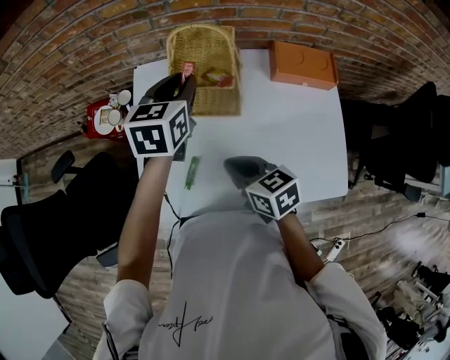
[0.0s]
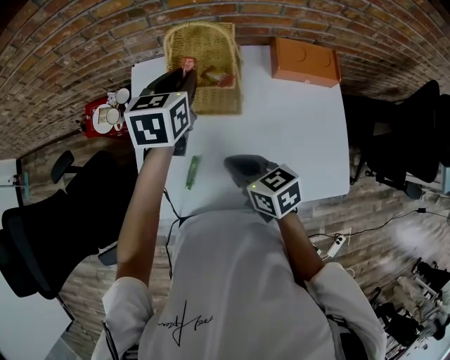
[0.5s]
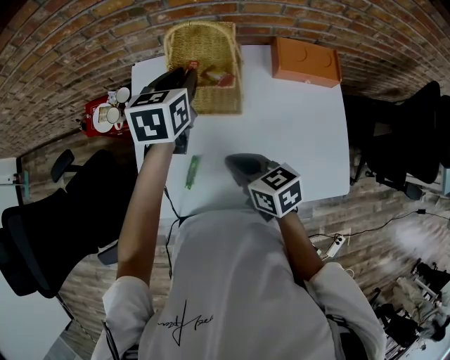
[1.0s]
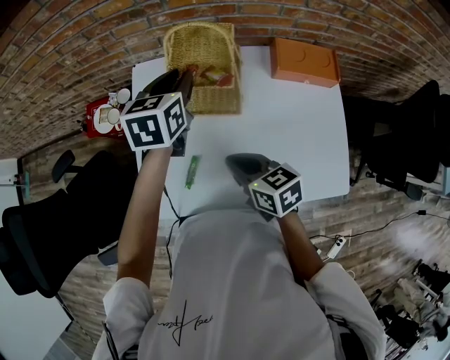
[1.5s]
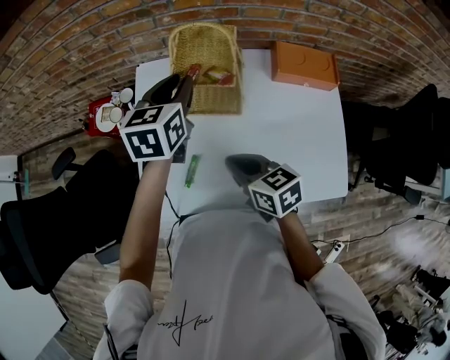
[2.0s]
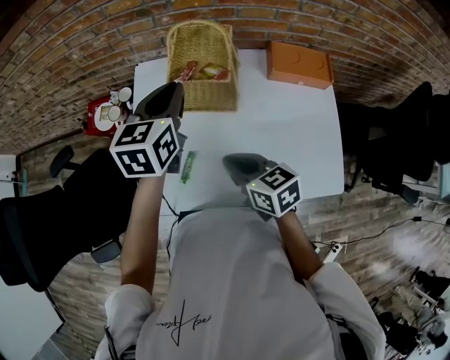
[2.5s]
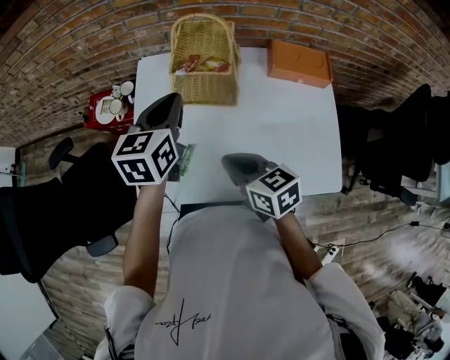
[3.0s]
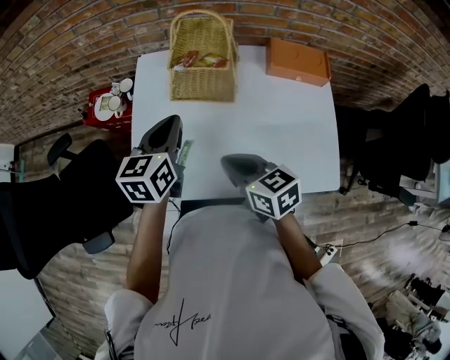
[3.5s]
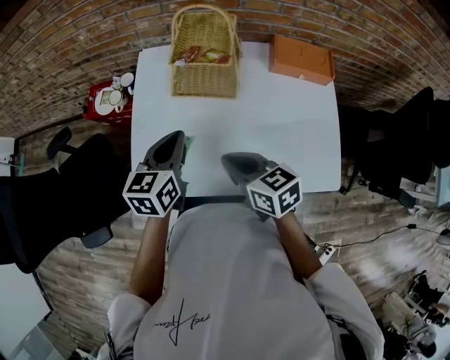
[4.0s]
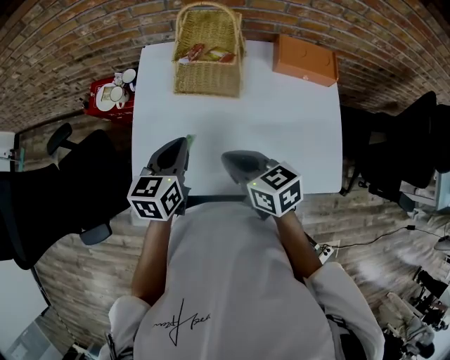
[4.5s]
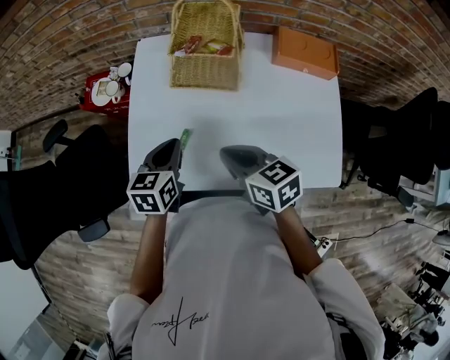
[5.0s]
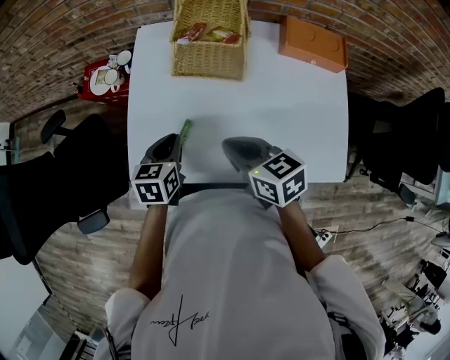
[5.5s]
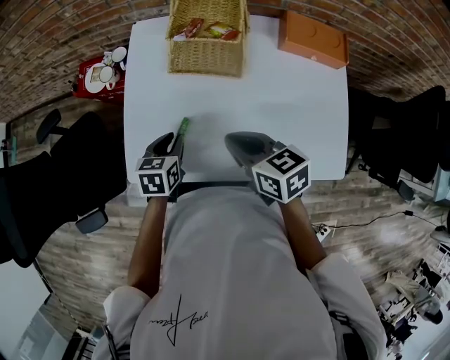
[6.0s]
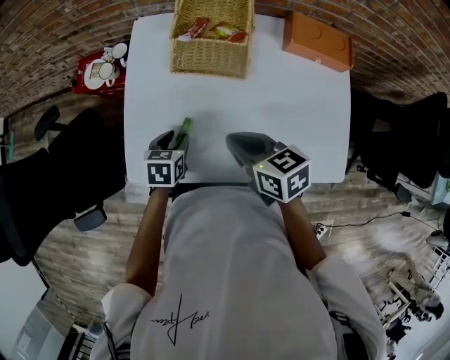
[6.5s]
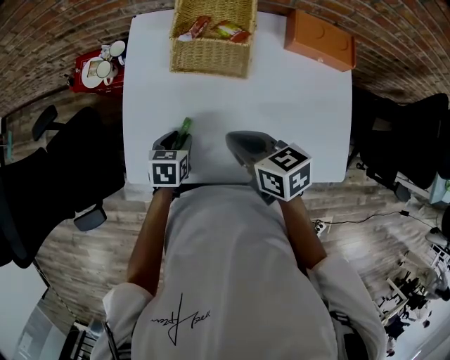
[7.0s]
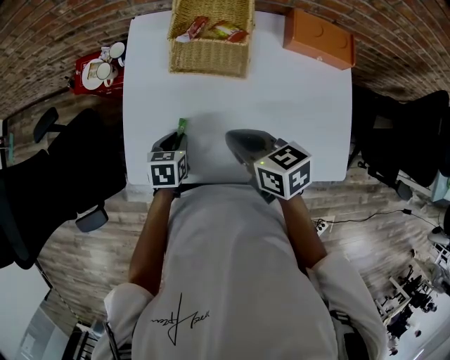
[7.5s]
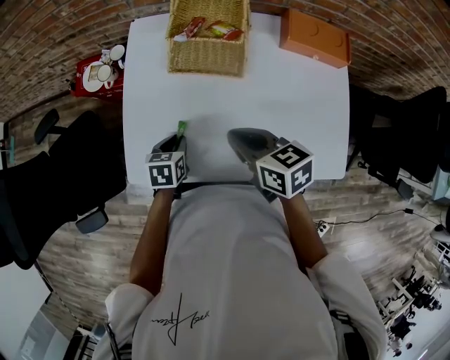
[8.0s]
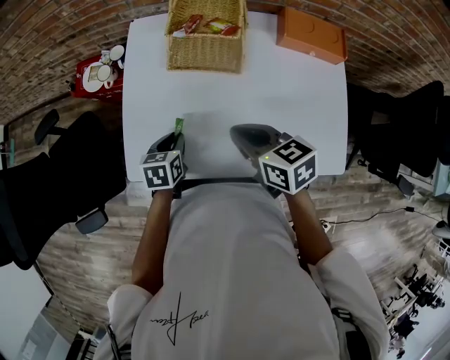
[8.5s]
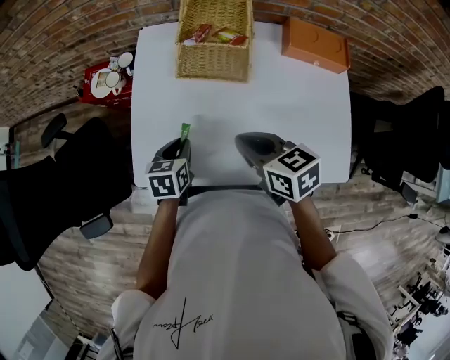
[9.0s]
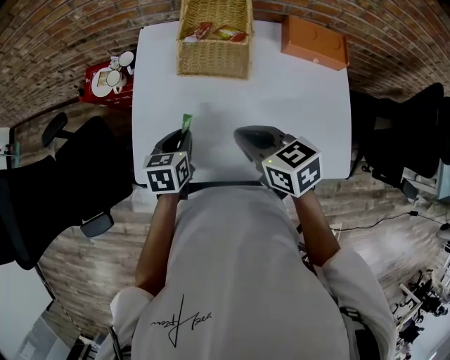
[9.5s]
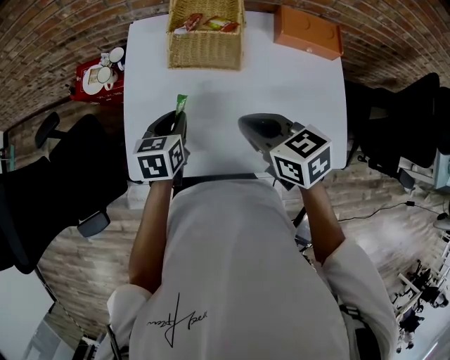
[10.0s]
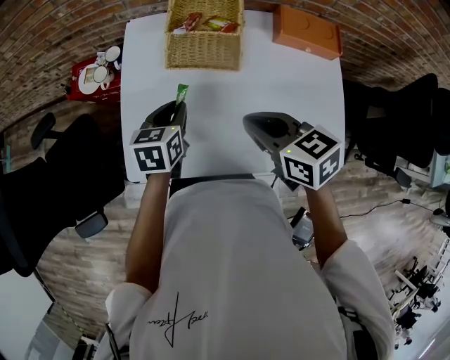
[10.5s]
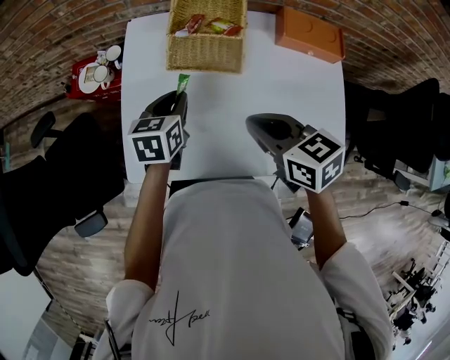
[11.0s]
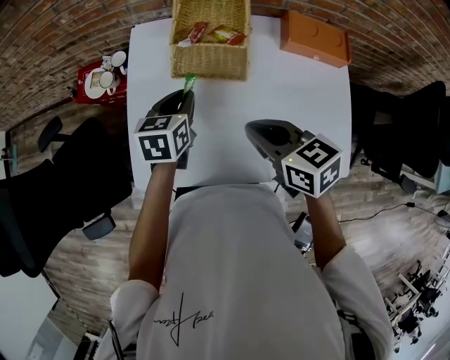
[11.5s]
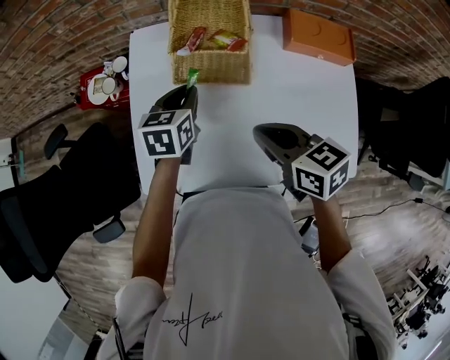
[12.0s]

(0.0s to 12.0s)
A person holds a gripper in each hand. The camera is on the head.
0.0s - 2.0s: The grippers stay close to where they were, moving slightly.
2.0s - 4.0s: The right gripper travels backward by roughly 5 cm. Meanwhile the left gripper is displaced backward by about 15 cm, and closes.
4.0s - 6.0s: The left gripper travels downward by approximately 15 cm, and turns by roughly 20 degrees.
6.0s - 8.0s: The left gripper is displaced downward by about 5 cm.
8.0s - 10.0s: The left gripper goes some 10 cm upward.
10.0s - 12.0s: The left gripper is displaced forward by roughly 10 cm.

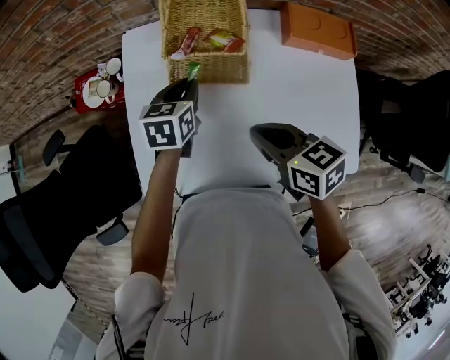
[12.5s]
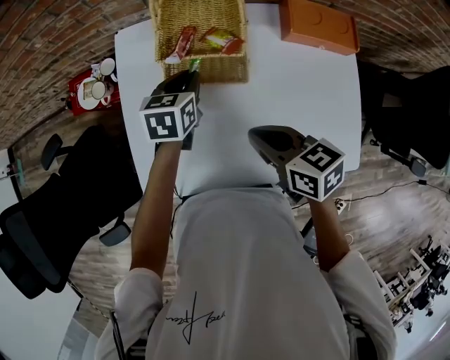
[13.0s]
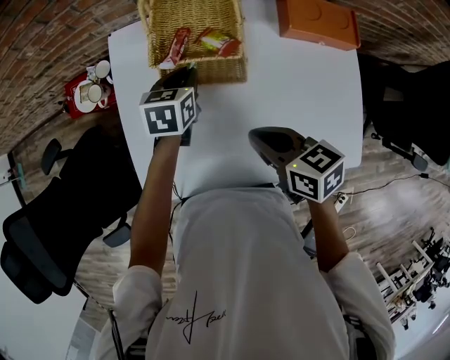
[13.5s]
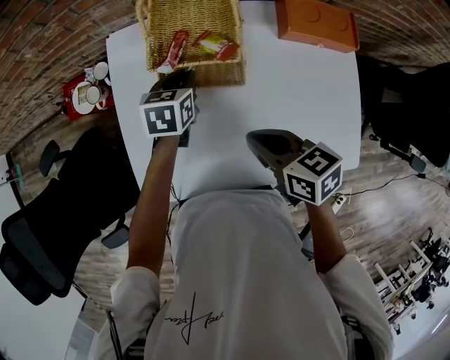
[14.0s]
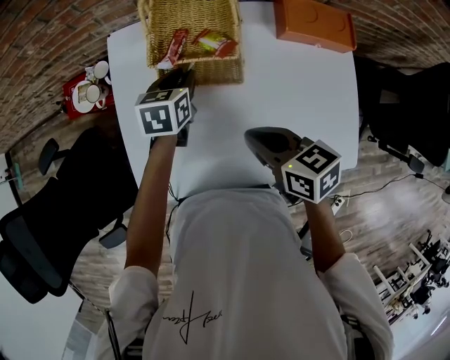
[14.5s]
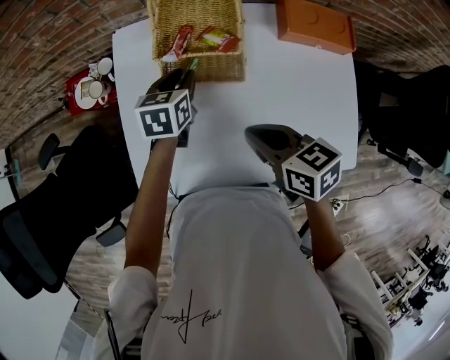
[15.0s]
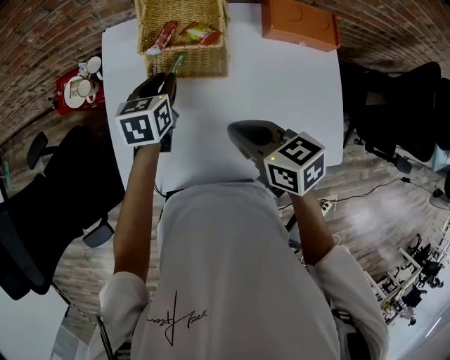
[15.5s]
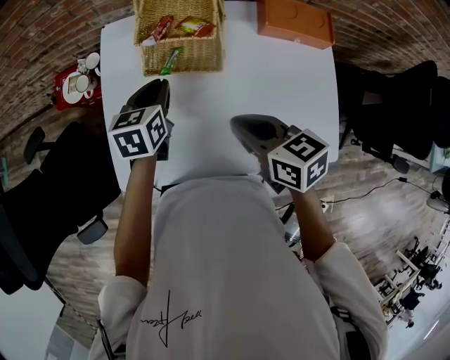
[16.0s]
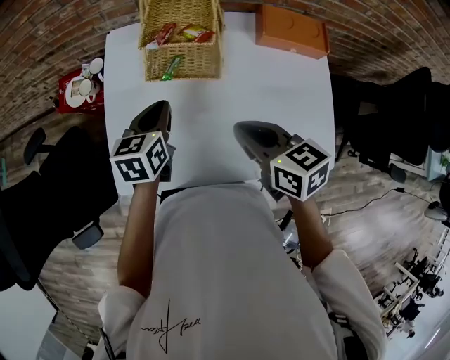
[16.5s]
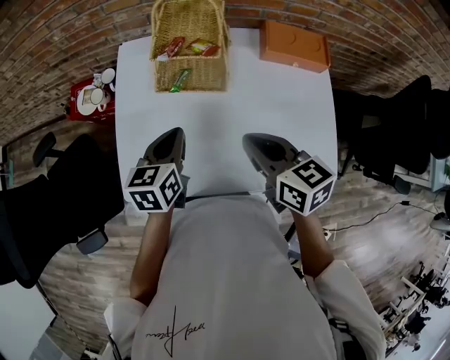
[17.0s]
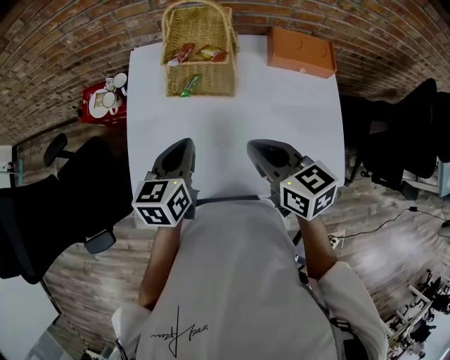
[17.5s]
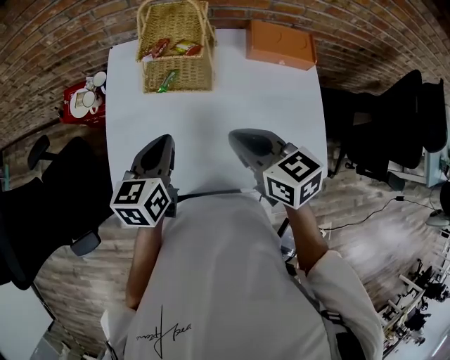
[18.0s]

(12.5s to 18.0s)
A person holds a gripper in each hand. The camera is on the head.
12.5s - 14.5s: The grippers stay close to where they were, moving slightly.
14.5s - 16.0s: The left gripper goes approximately 5 cm backward.
16.0s - 18.0s: The left gripper moves backward and upward, roughly 15 cm.

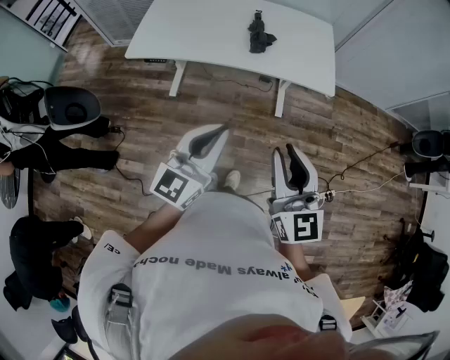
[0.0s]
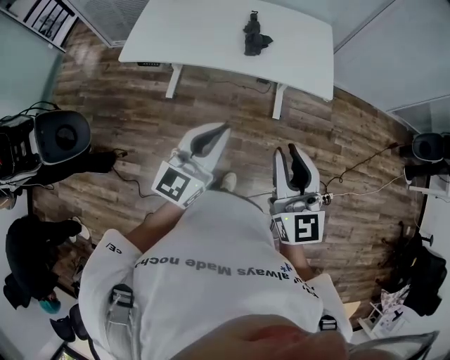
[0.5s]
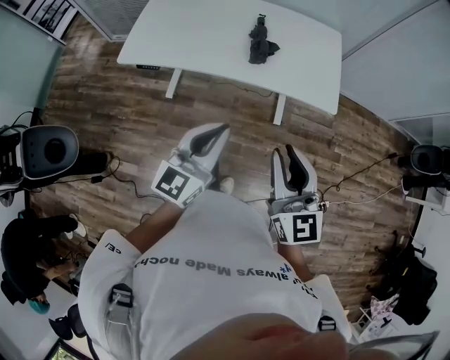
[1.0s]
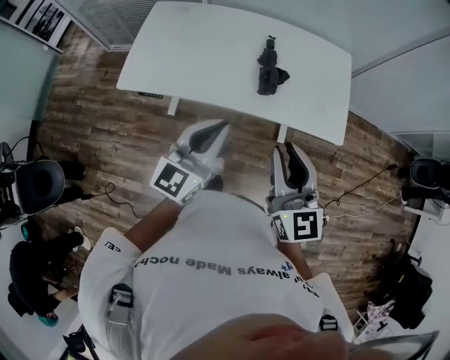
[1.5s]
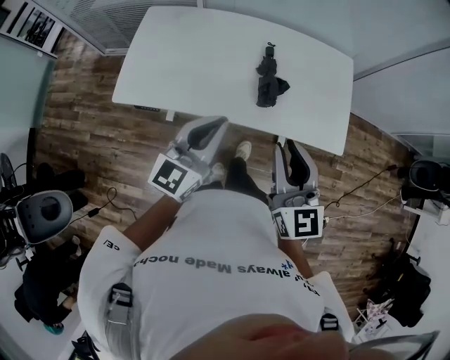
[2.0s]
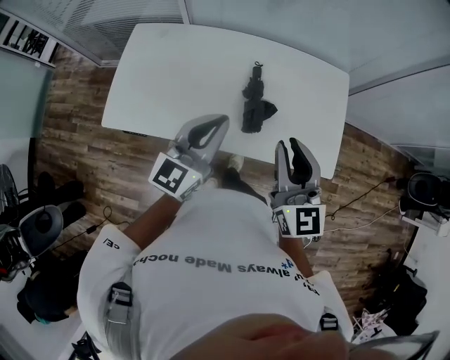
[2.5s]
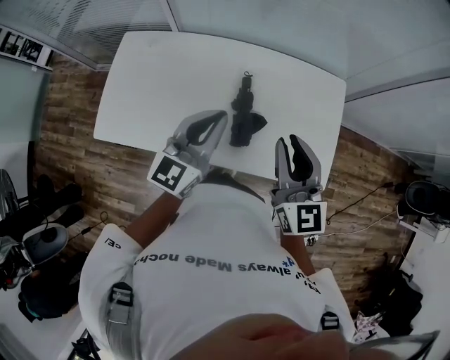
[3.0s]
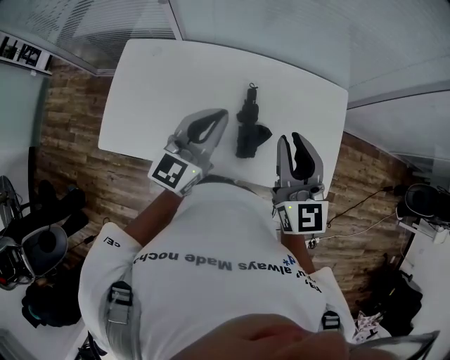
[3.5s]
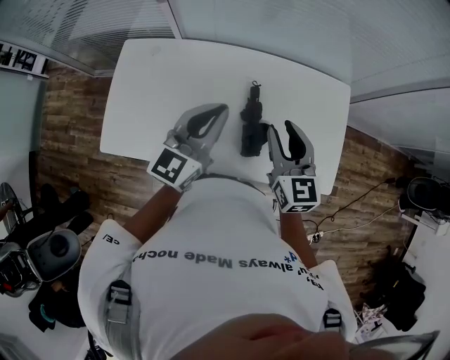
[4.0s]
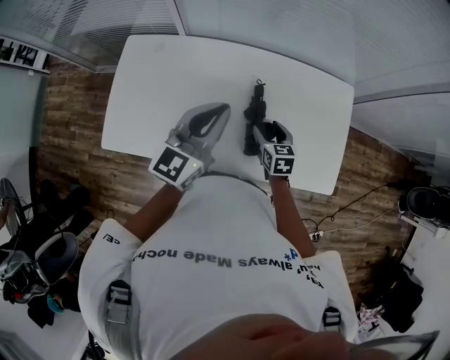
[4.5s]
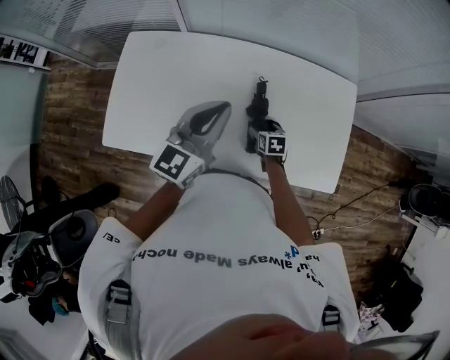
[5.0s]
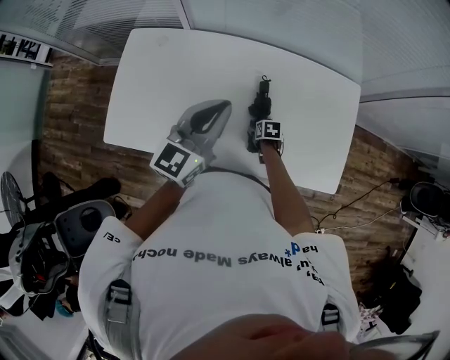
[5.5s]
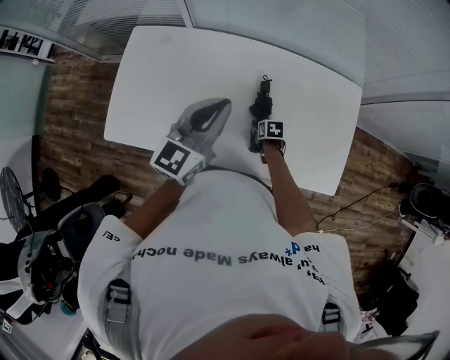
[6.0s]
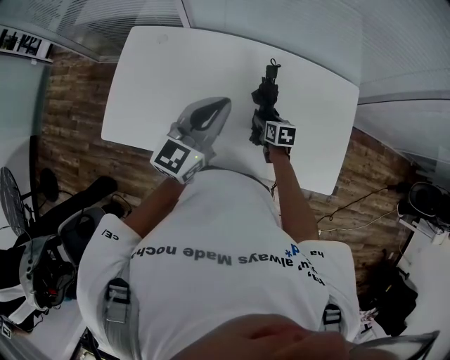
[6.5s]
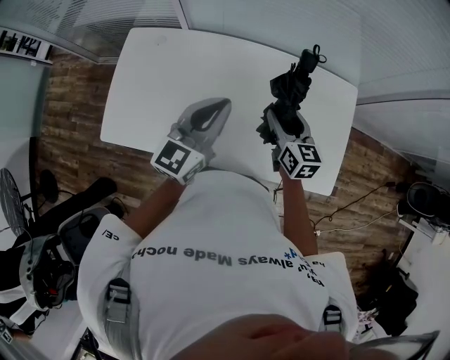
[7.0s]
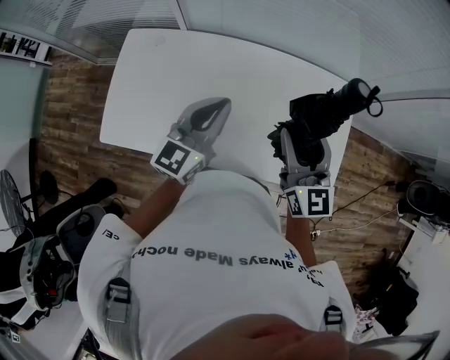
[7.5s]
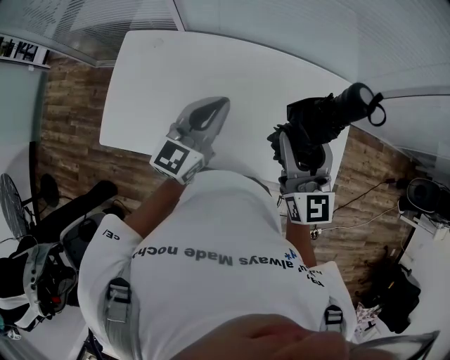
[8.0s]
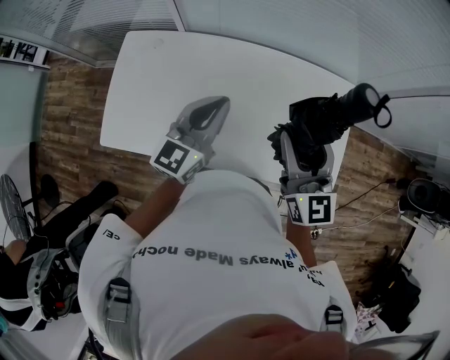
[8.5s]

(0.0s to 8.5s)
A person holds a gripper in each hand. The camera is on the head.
0.0s - 2.0s: Both grippers are carried forward, some 50 cm.
2.0s - 4.0s: The two grippers go about 35 cm forward.
4.0s - 6.5s: The right gripper is displaced downward by some 30 cm, tips its fingers downward by roughly 30 degrees, and opens, then closes once more.
6.5s - 8.5s: The right gripper shifts approximately 35 cm upward, and angles its fingers upward, by some 50 degrees.

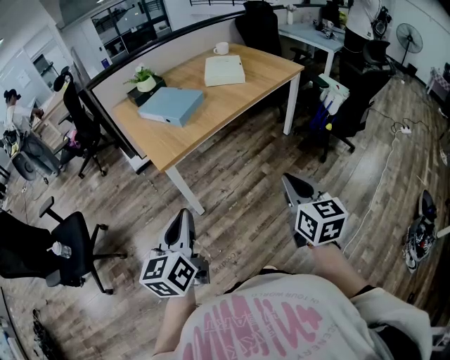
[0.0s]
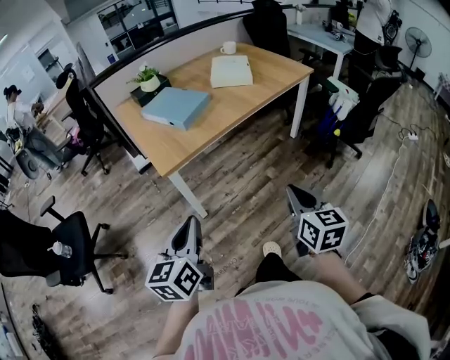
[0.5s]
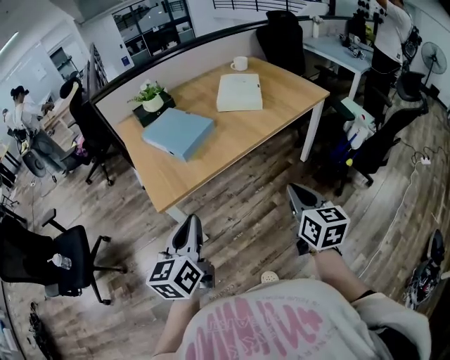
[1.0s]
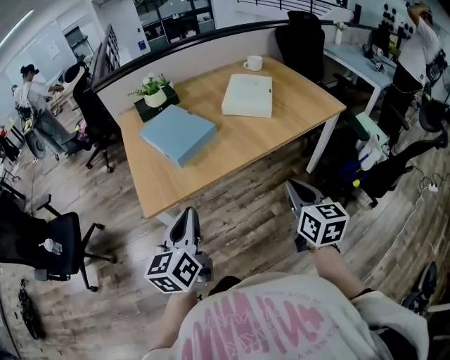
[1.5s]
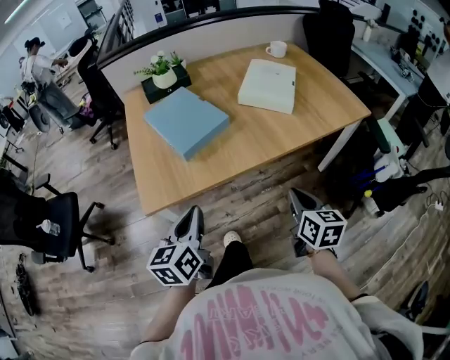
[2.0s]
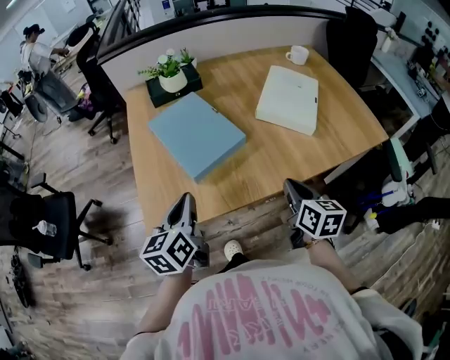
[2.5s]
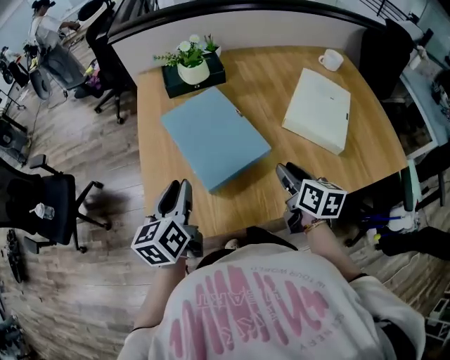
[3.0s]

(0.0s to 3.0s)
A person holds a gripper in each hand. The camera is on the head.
0.0s - 1.5s: The two grippers go about 25 cm forward.
1.5s - 3.0s: Both grippers travel together forward, roughly 30 cm. The left gripper changes its angle by approximately 20 degrees, while the right gripper swivels approximately 20 degrees.
